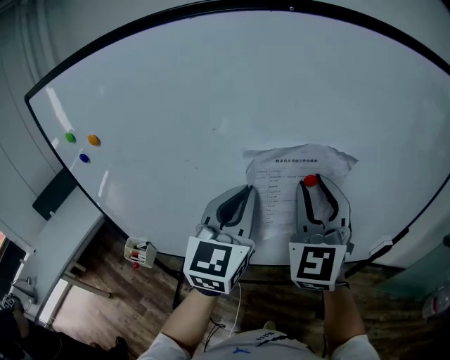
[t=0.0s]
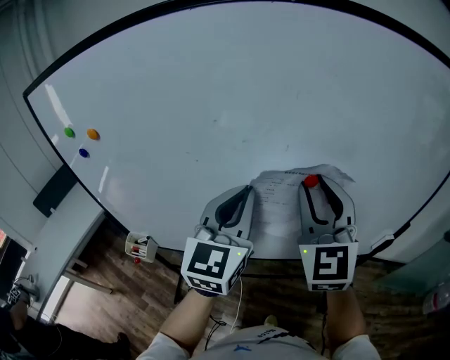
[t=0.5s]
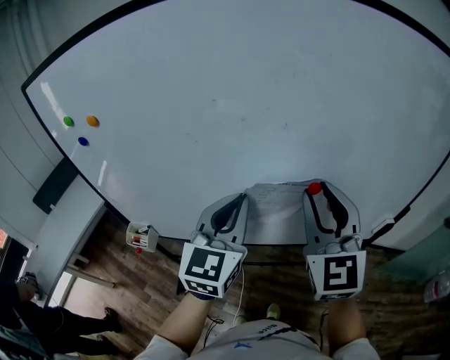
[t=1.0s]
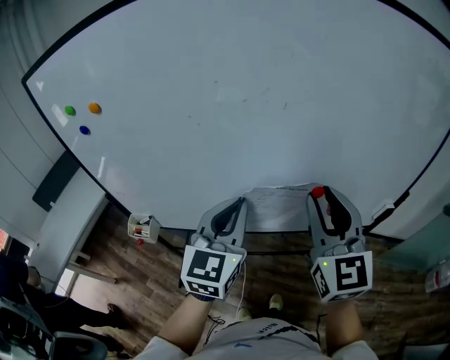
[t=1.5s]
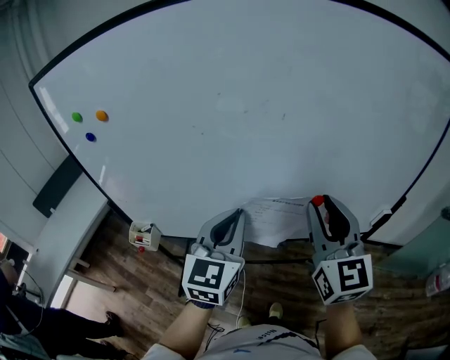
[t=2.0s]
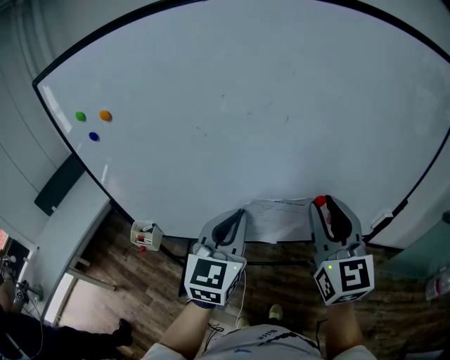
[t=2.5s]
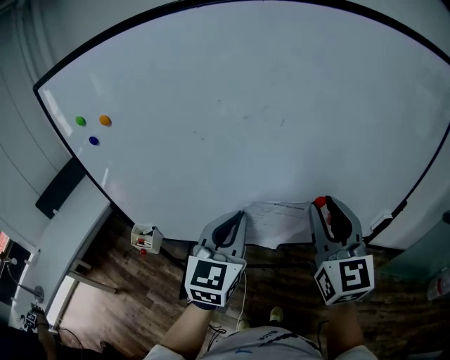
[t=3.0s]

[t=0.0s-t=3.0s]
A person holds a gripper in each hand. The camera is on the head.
t=0.0s to t=1.5s: The left gripper goes roughly 10 cm downward and backward; the right gripper is displaced backward and downward by about 10 cm, and changes its angle by approximately 20 degrees.
t=1.5s to t=3.0s: The grippers make only small movements.

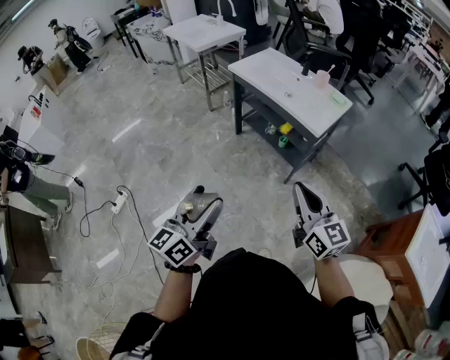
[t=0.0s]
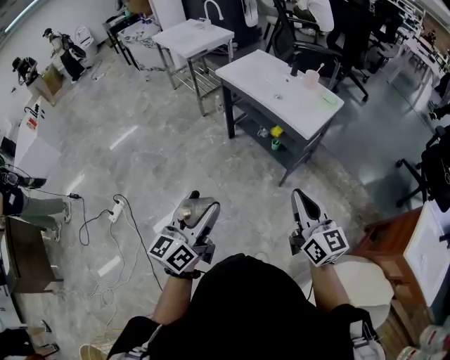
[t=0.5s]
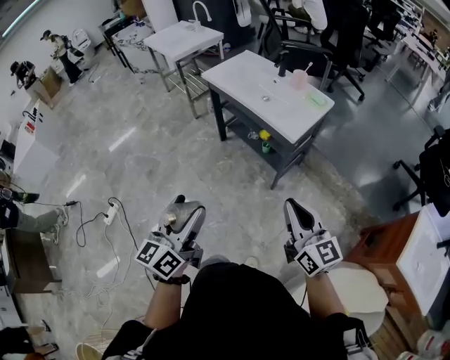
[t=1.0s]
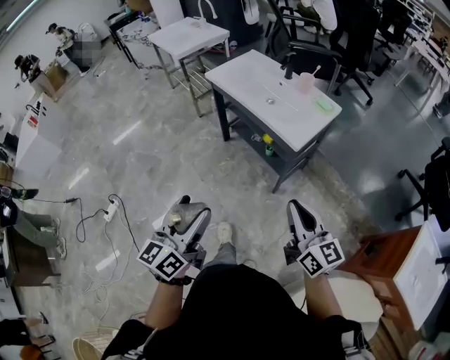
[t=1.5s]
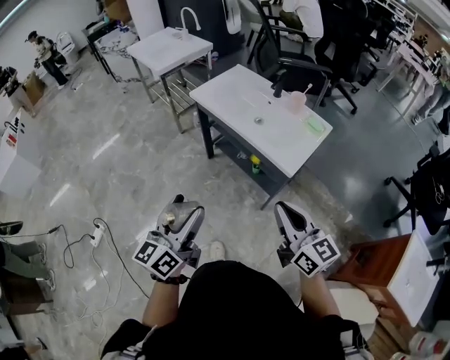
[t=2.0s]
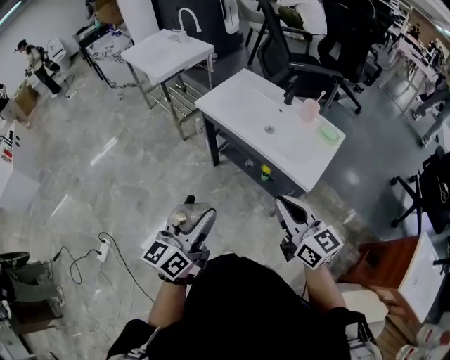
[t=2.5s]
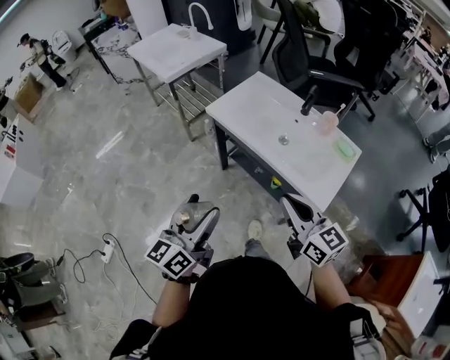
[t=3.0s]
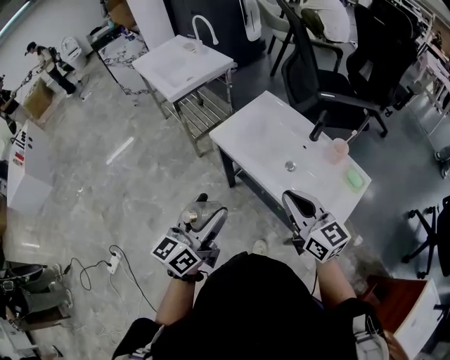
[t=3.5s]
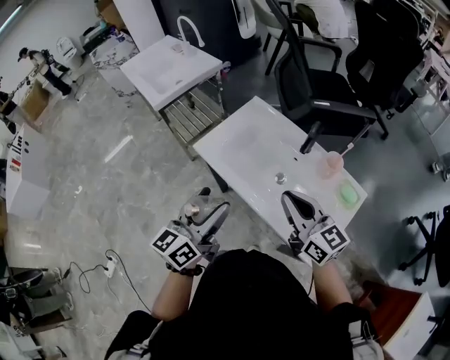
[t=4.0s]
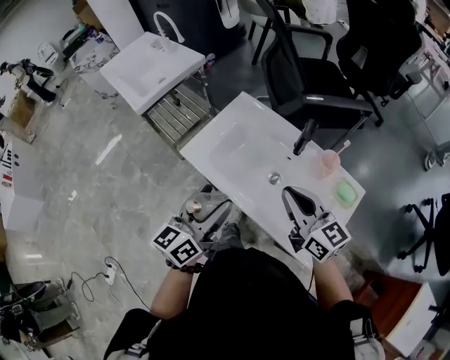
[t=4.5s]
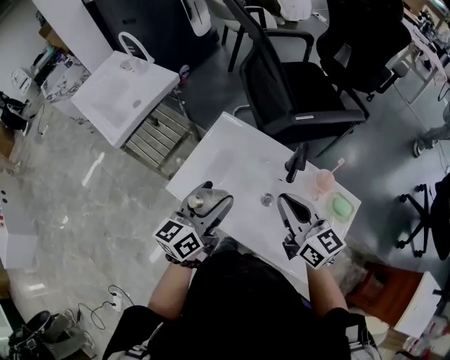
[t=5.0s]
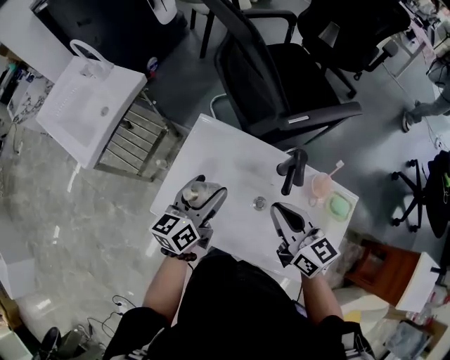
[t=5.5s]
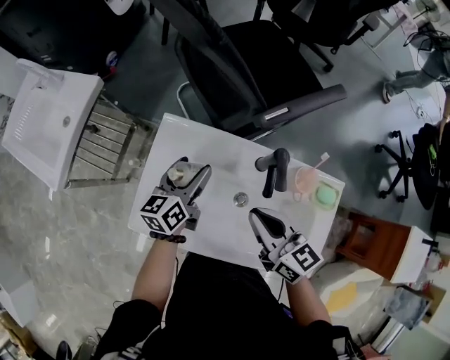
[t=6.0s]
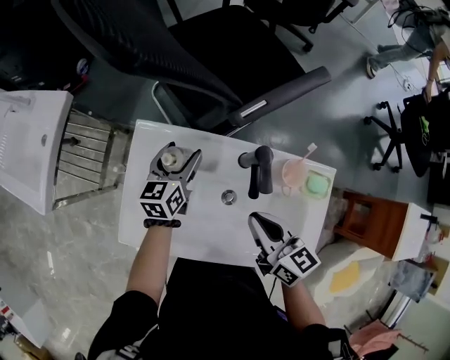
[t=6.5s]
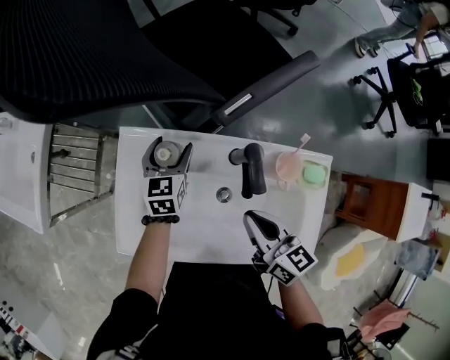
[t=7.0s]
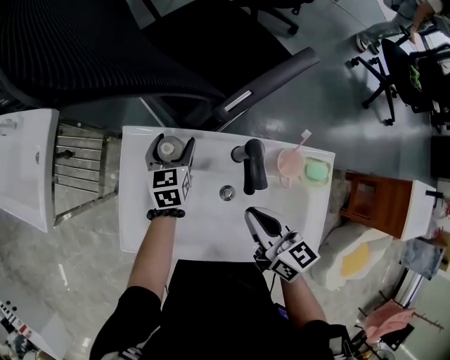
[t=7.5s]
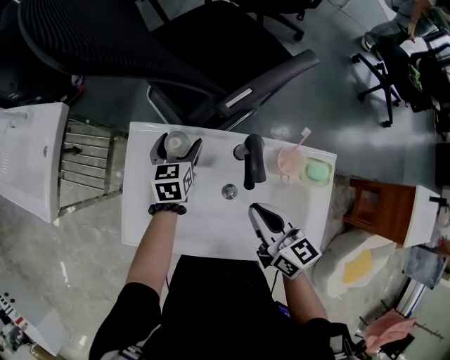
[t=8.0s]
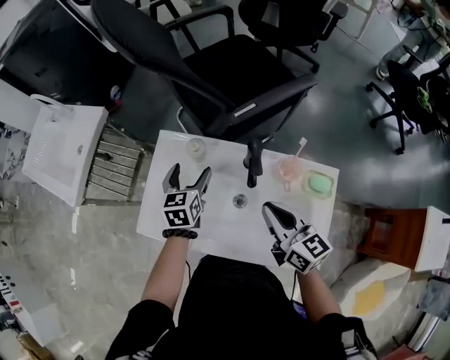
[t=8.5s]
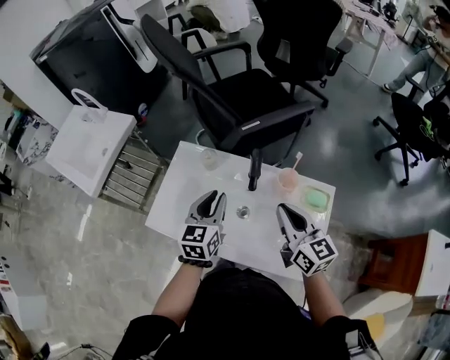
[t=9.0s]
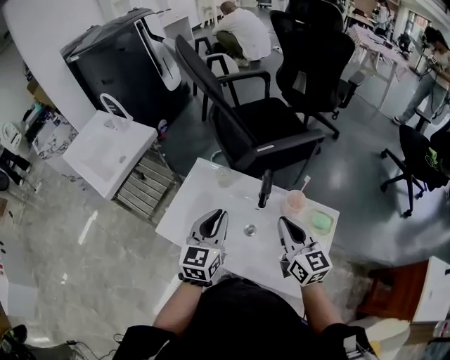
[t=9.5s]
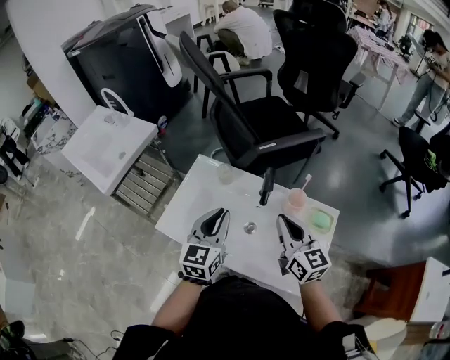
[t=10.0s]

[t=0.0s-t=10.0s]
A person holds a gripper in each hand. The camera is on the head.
t=0.0s to t=2.0s: The right gripper is displaced forward and to the right by about 15 cm, while the left gripper shifts approximately 20 cm forward.
t=2.0s to t=4.0s: Both grippers travel together forward, approximately 40 cm.
t=4.0s to t=6.0s: The right gripper goes approximately 20 cm forward and downward, and changes its angle by roughly 30 degrees. The left gripper heads forward and downward, covering some 40 cm, and turns by about 30 degrees.
t=6.0s to t=8.0s: The left gripper heads forward, downward and to the right, covering roughly 10 cm, and turns by about 30 degrees; the right gripper moves about 5 cm.
t=8.0s to t=10.0s: The right gripper heads upward, covering about 10 cm, and swivels approximately 20 degrees; the left gripper goes roughly 30 cm backward and upward, changes its angle by roughly 20 degrees, and closes up.

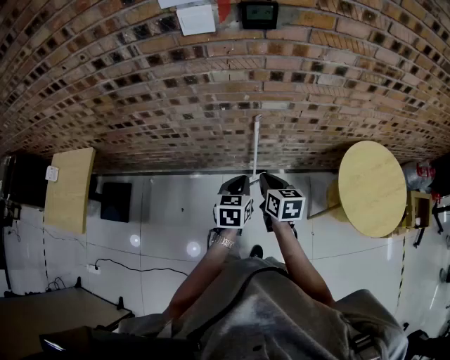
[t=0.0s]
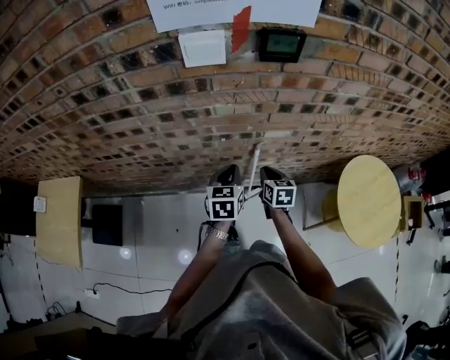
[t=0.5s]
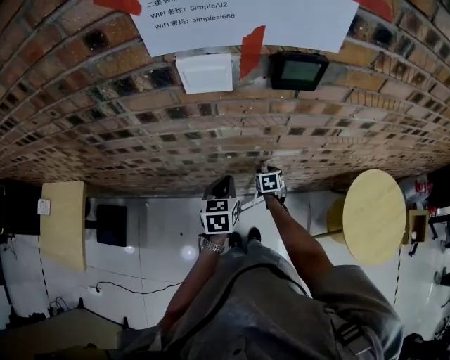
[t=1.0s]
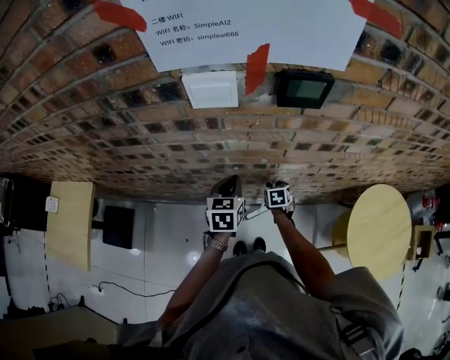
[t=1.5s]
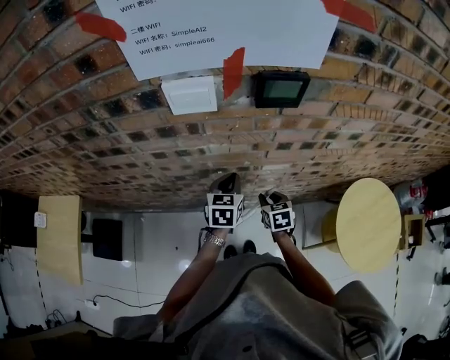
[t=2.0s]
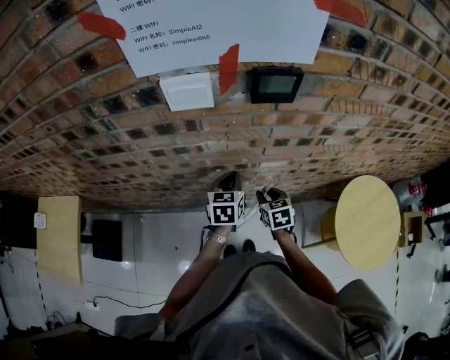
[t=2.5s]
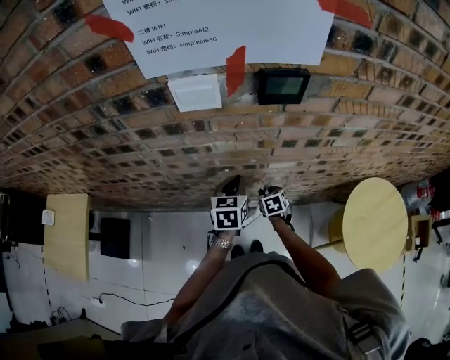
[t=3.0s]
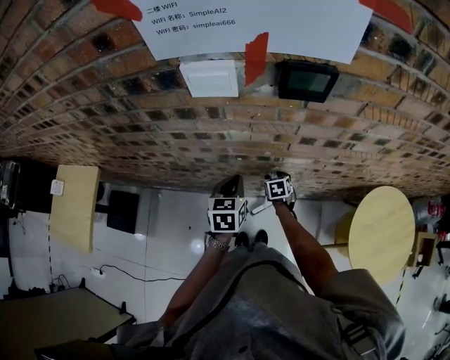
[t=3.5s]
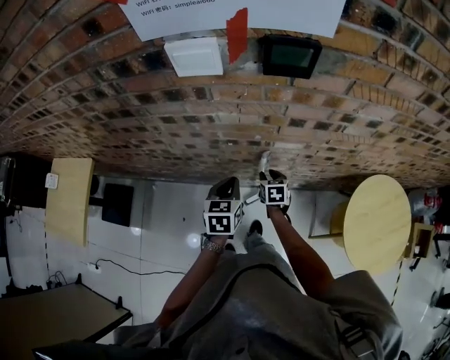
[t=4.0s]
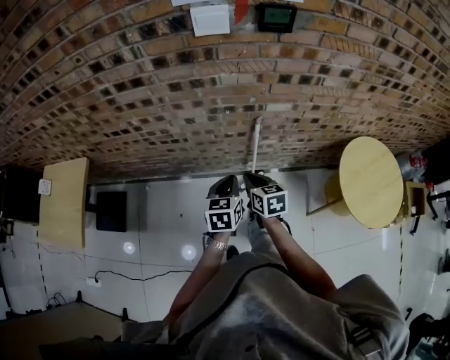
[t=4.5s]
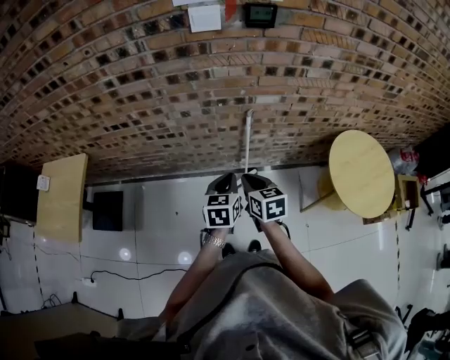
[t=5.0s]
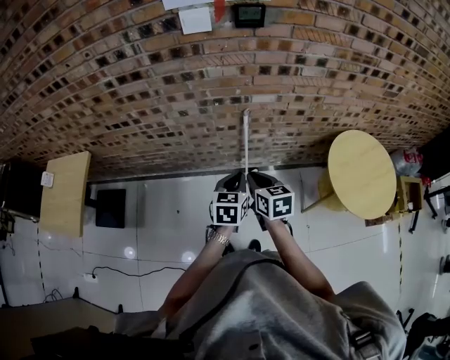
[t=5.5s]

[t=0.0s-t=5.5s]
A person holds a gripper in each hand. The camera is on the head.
t=0.0s to t=2.0s: The two grippers go approximately 25 cm forward. The right gripper swivels about 20 degrees, and opens up.
t=2.0s to t=3.5s: The right gripper shifts about 15 cm downward and forward; the left gripper ends up some 5 cm from where it was.
t=3.5s to t=5.5s: The left gripper is displaced backward by roughly 30 cm; the right gripper shifts some 40 cm backward and upward, rotates about 30 degrees, and closes.

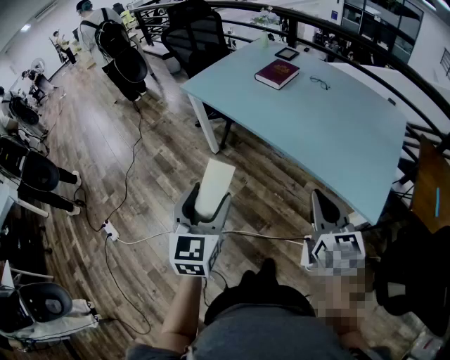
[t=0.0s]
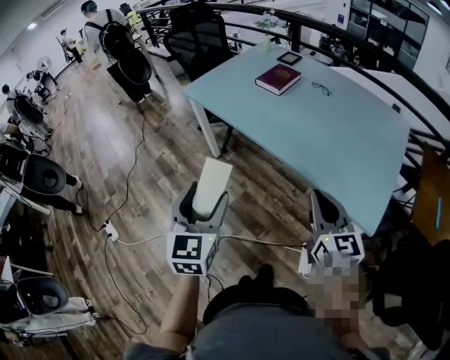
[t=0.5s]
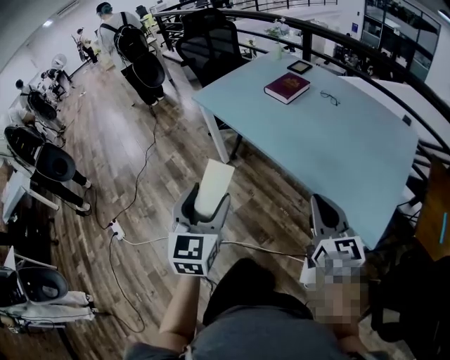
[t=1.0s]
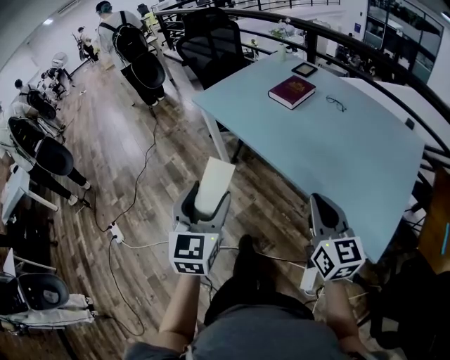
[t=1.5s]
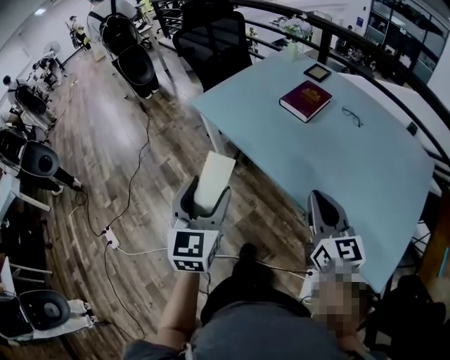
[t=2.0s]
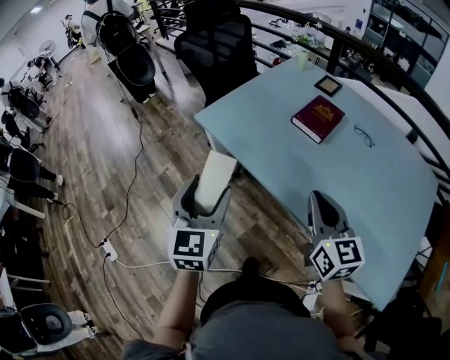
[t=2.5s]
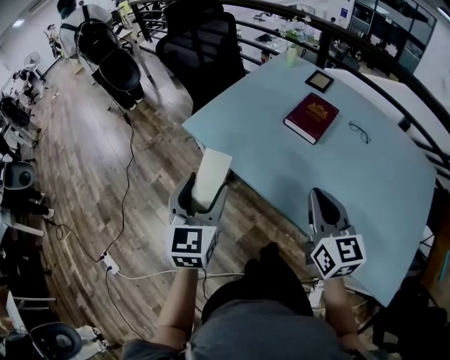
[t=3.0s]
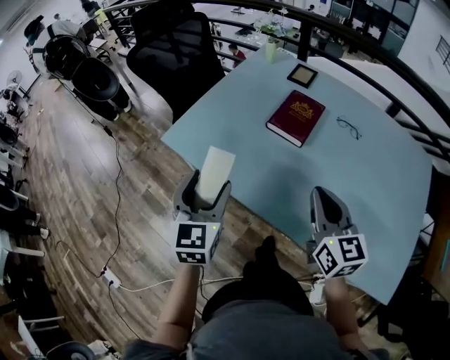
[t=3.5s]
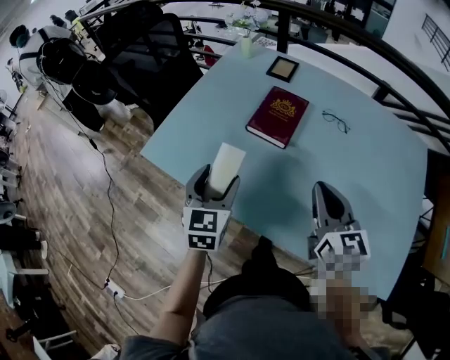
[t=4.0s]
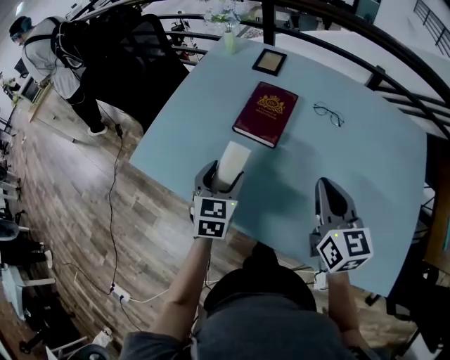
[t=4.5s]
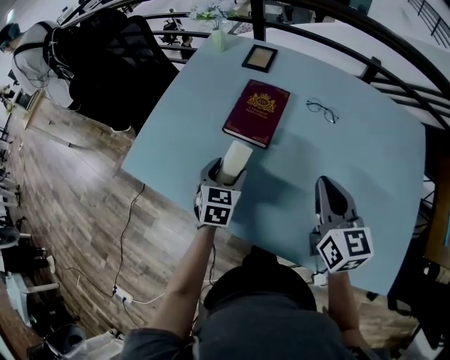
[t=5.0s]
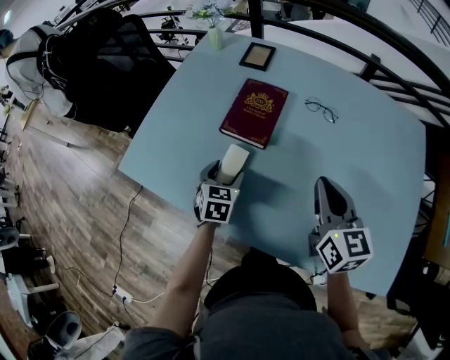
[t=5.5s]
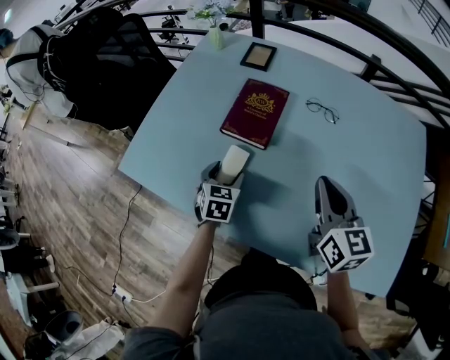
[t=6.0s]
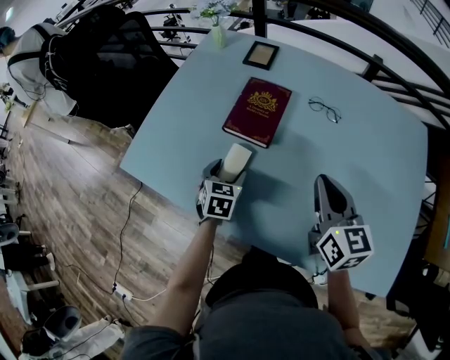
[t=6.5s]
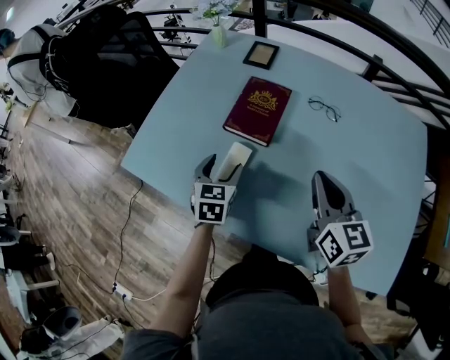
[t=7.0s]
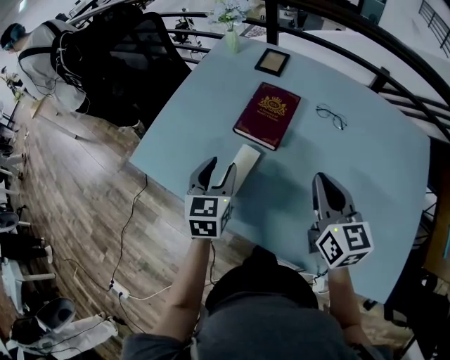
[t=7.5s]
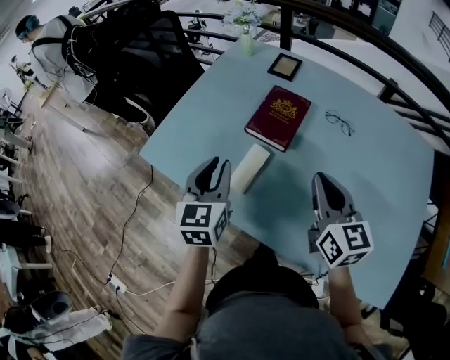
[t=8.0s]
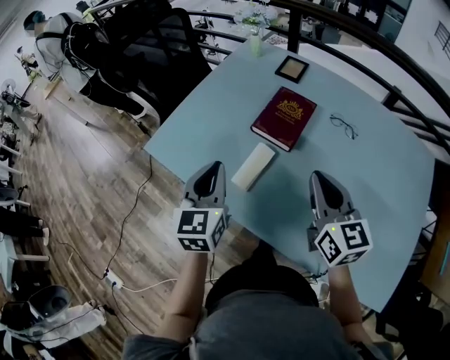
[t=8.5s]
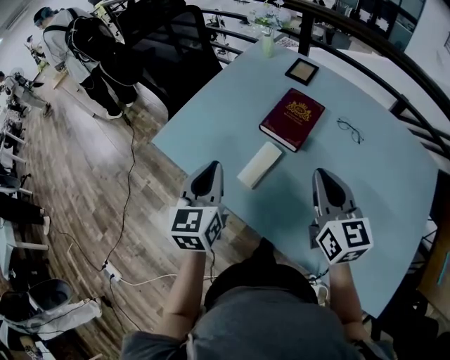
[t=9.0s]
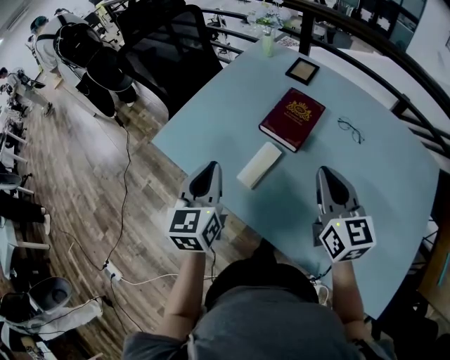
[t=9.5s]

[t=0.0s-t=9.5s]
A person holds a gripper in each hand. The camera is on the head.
t=0.0s to t=2.0s: Both grippers move forward, some 20 cm.
t=2.0s to t=4.0s: The two grippers go roughly 25 cm forward. The left gripper swivels some 20 degrees.
t=4.0s to t=5.5s: The right gripper shifts about 5 cm to the right; the left gripper moves downward, forward and to the right, some 20 cm.
t=5.5s to t=7.5s: The left gripper moves upward, approximately 10 cm, and closes.
t=7.5s to t=9.5s: The right gripper ends up roughly 5 cm from where it was, while the left gripper moves to the left, upward and backward, approximately 10 cm, and closes up.
